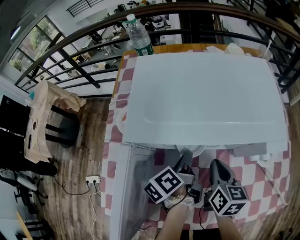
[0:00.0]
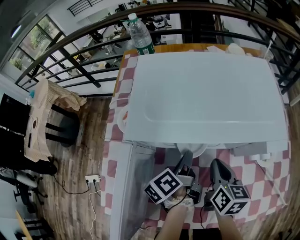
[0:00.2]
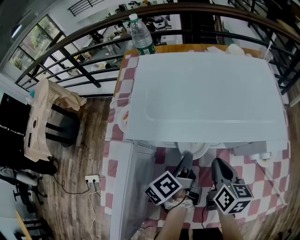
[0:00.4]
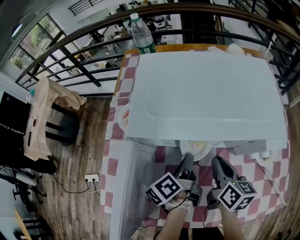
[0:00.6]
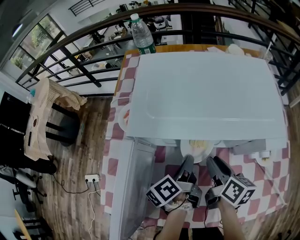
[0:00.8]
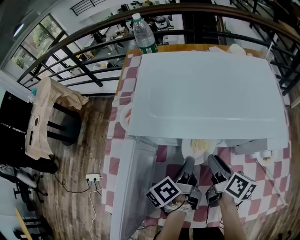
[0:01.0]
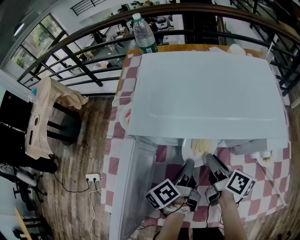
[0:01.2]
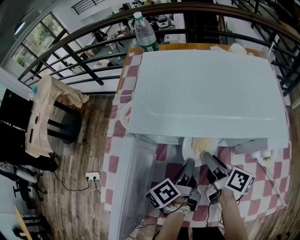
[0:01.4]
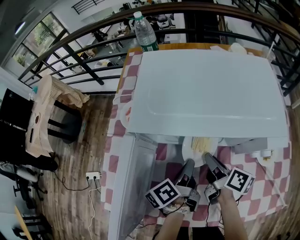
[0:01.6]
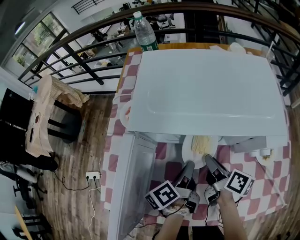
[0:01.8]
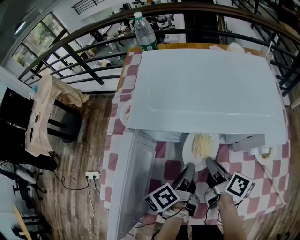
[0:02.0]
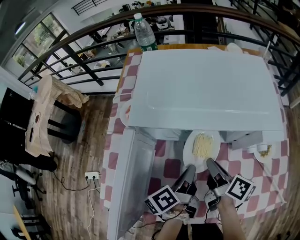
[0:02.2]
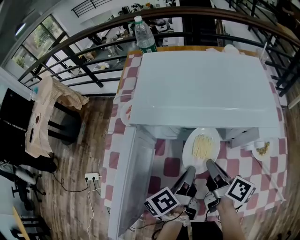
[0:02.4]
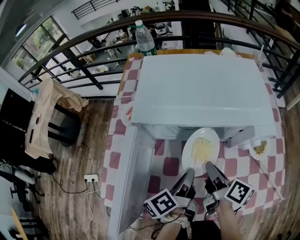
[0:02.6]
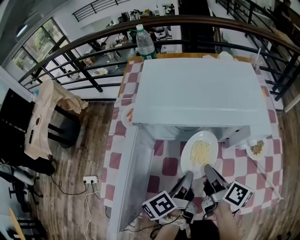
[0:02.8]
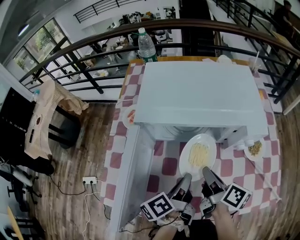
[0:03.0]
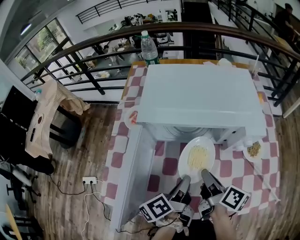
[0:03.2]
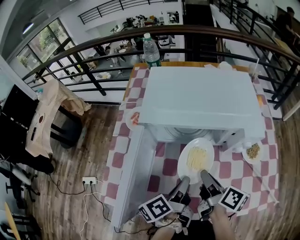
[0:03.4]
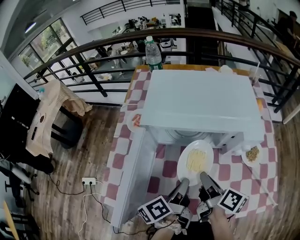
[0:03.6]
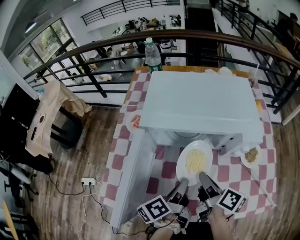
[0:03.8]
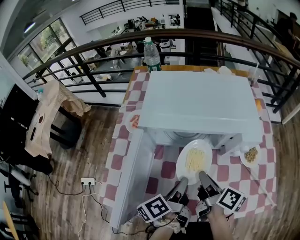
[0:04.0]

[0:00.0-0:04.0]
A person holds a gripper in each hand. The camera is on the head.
0.0 to 1.4 s: The right gripper rotates roughly 40 degrees, and opens its fingers.
1.4 to 2.6 s: Both grippers move backward, about 5 cm.
2.6 to 4.0 s: The grippers stay close to where they were, moving slightly.

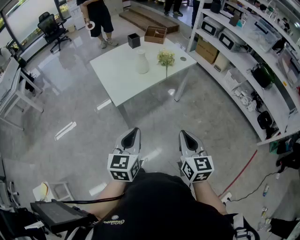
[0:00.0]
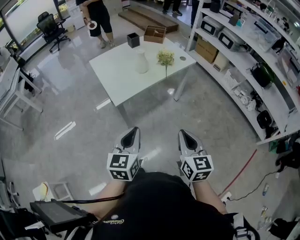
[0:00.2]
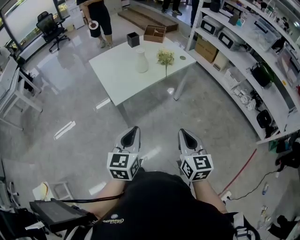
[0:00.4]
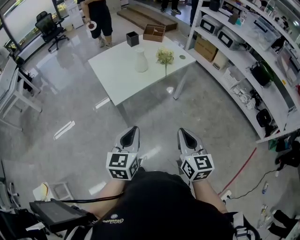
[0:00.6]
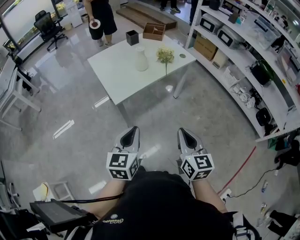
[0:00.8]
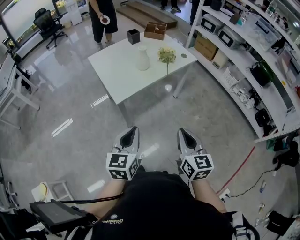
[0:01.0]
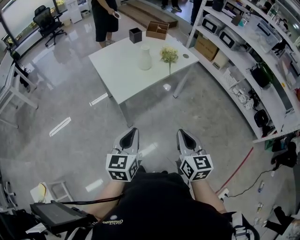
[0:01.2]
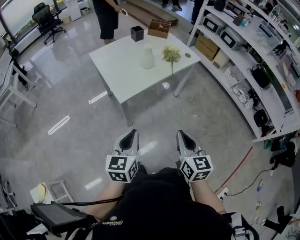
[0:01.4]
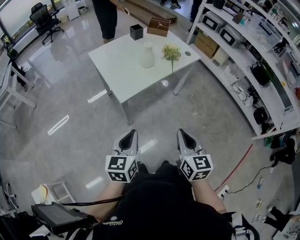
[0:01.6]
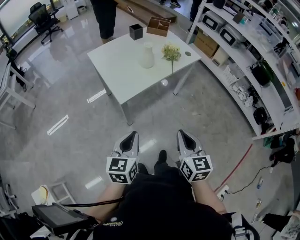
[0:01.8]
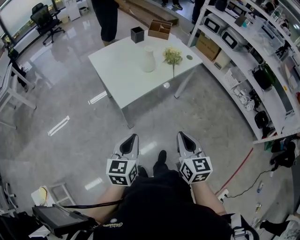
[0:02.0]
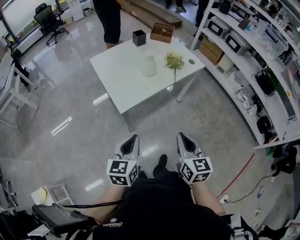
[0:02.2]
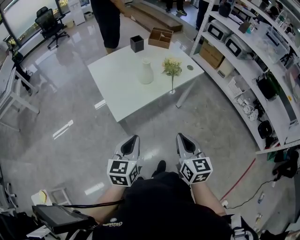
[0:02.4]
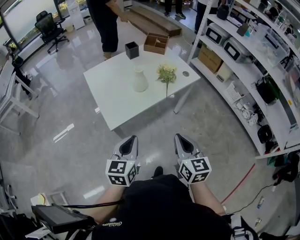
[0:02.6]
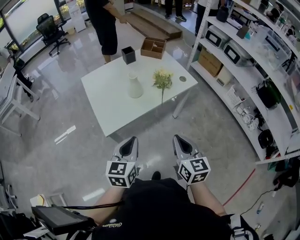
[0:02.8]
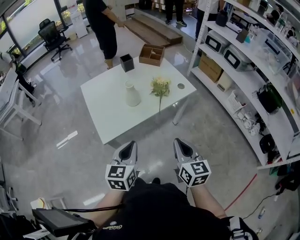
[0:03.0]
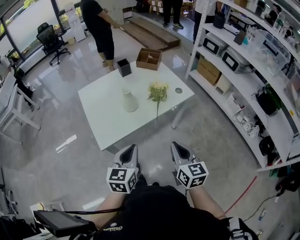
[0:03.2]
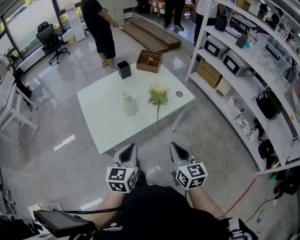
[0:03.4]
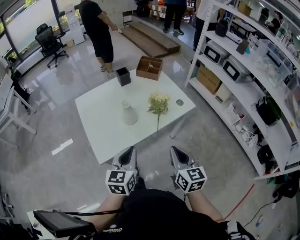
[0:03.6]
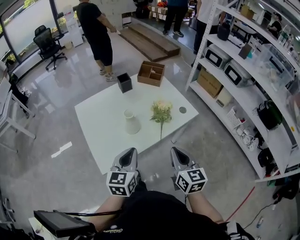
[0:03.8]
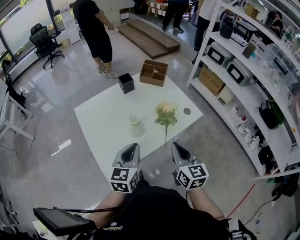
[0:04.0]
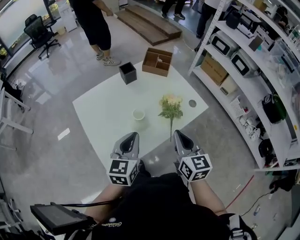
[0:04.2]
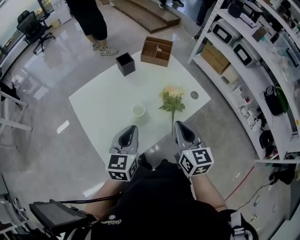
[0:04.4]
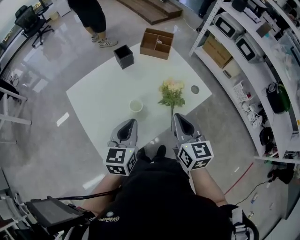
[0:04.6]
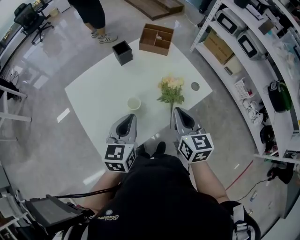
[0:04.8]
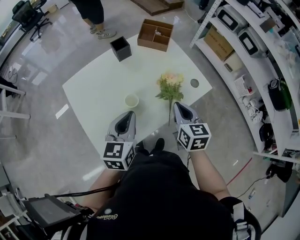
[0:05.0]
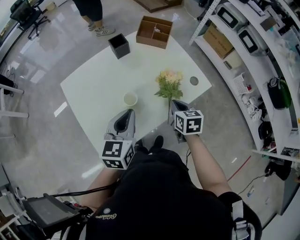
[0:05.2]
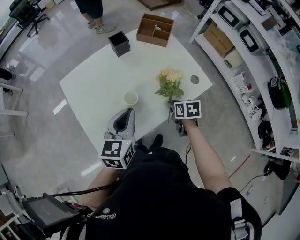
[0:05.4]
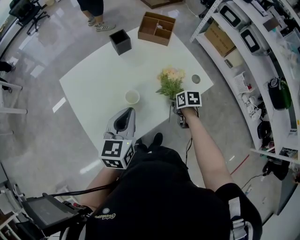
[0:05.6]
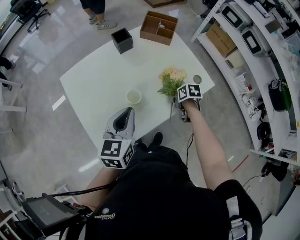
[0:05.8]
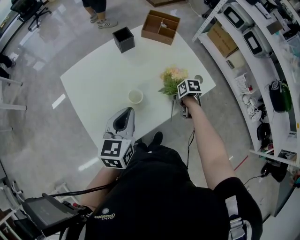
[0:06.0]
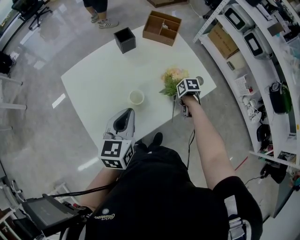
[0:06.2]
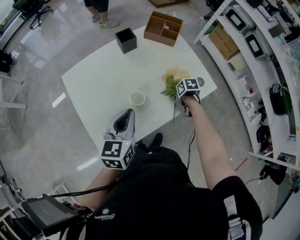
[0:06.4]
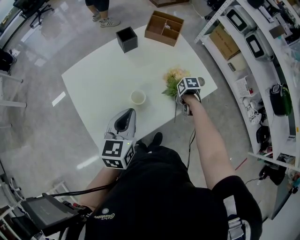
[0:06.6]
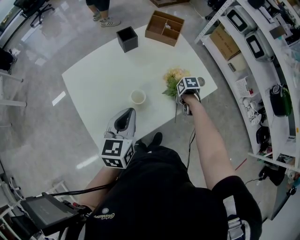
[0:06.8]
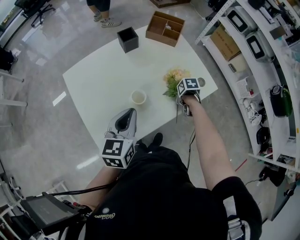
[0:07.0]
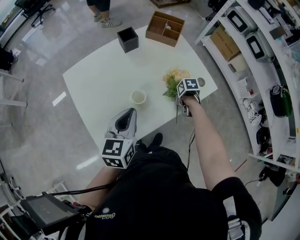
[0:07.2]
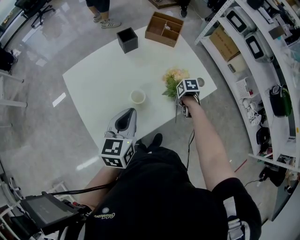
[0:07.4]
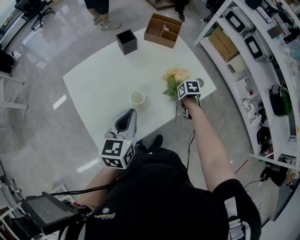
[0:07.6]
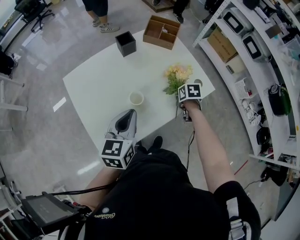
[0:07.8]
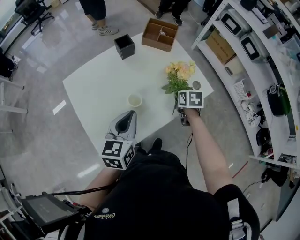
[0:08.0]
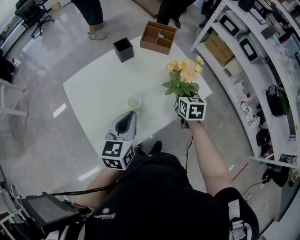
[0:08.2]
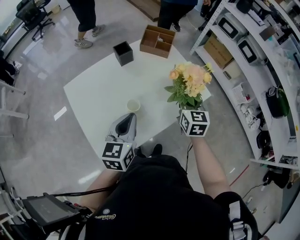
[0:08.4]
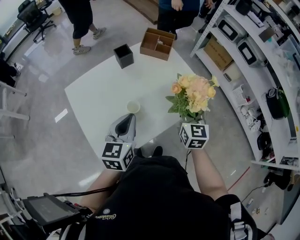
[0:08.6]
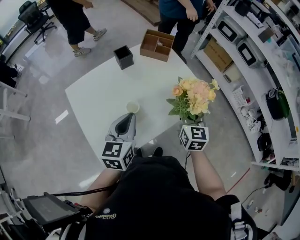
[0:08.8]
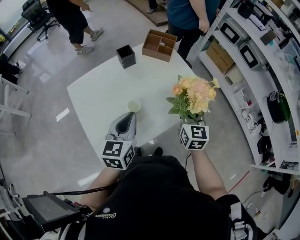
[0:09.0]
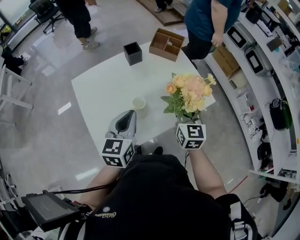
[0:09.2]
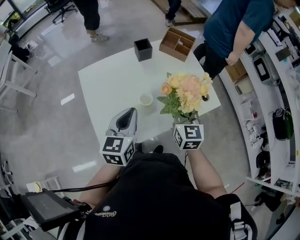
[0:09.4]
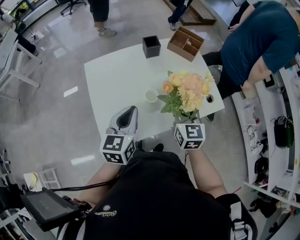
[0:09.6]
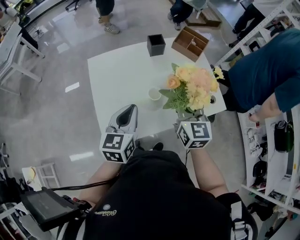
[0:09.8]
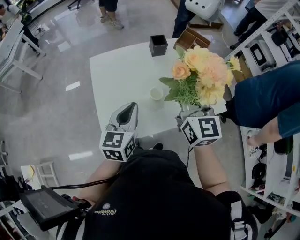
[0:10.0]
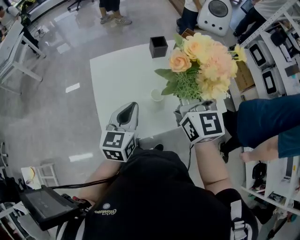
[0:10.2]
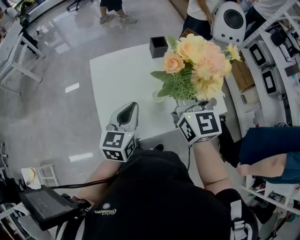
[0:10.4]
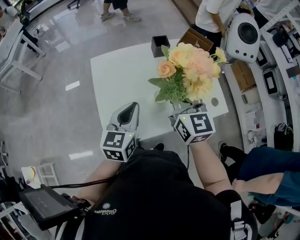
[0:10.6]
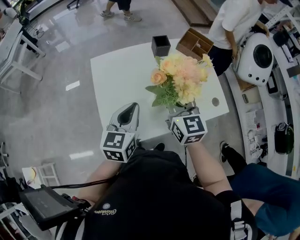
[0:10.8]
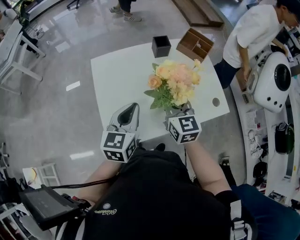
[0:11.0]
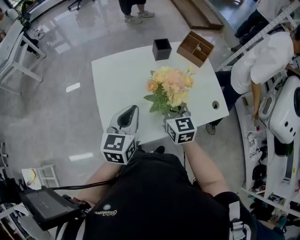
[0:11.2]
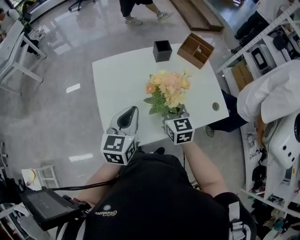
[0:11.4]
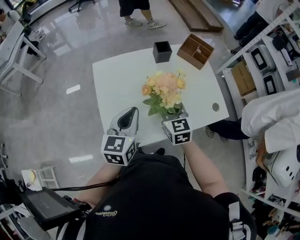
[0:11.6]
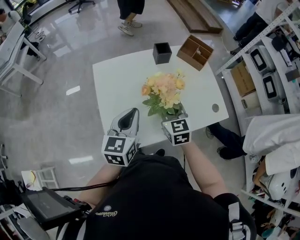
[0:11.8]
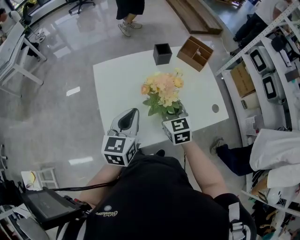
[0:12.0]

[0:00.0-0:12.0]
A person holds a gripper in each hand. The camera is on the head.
0.0 to 1.6 s: The grippers both shift to the left by approximately 10 cm.
1.6 to 3.0 s: The grippers both shift forward and to the right by roughly 25 cm.
3.0 to 4.4 s: The two grippers go some 30 cm forward.
4.4 to 6.0 s: The right gripper moves downward, approximately 30 cm, tilts its fingers about 50 degrees downward, and opens up.
6.0 to 7.6 s: The grippers make only small movements.
7.6 to 9.0 s: The right gripper heads upward, covering some 25 cm, and points its fingers approximately 60 degrees further upward.
9.0 to 10.4 s: The left gripper moves to the left, approximately 5 cm; the right gripper shifts approximately 25 cm to the left and upward, and turns by roughly 30 degrees.
10.4 to 12.0 s: The right gripper is displaced downward by some 20 cm, and changes its angle by roughly 30 degrees.

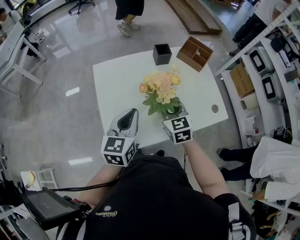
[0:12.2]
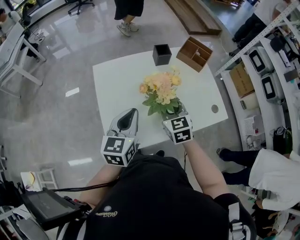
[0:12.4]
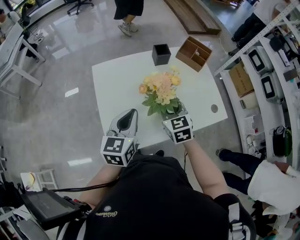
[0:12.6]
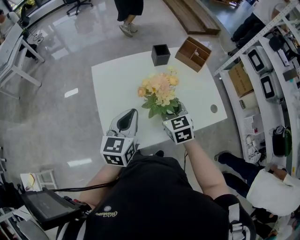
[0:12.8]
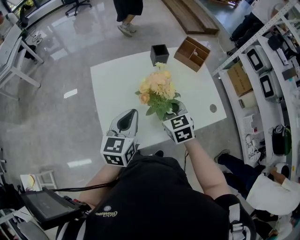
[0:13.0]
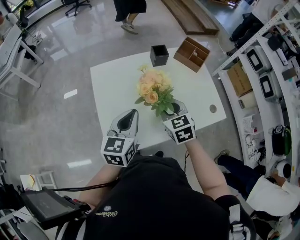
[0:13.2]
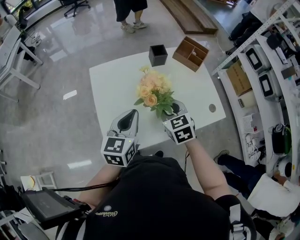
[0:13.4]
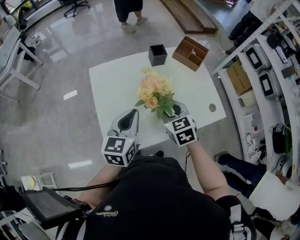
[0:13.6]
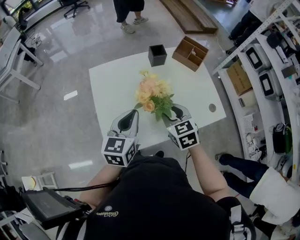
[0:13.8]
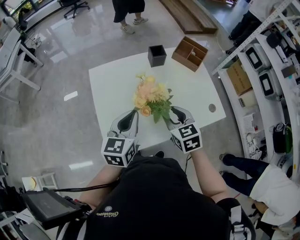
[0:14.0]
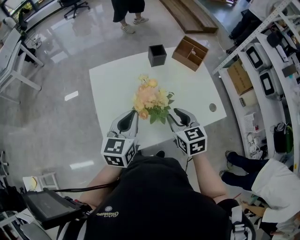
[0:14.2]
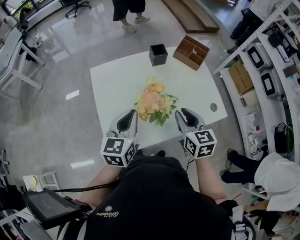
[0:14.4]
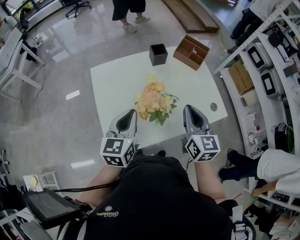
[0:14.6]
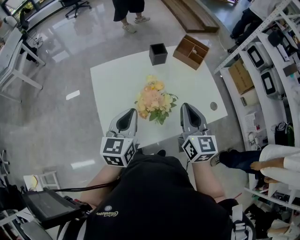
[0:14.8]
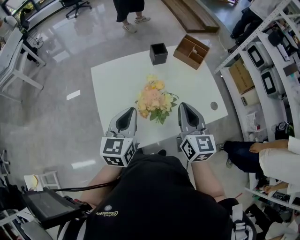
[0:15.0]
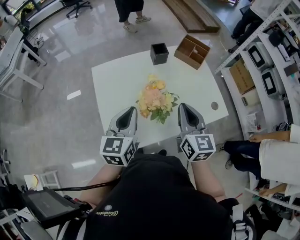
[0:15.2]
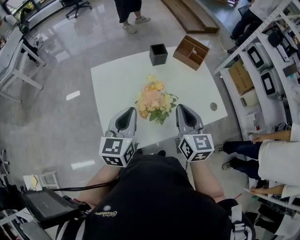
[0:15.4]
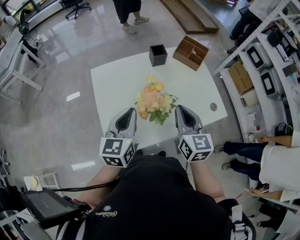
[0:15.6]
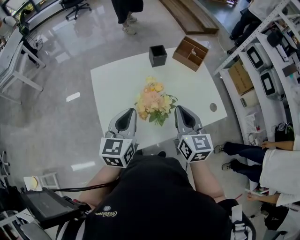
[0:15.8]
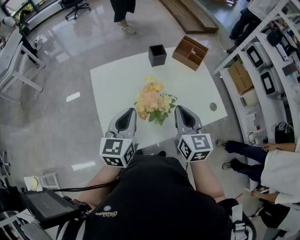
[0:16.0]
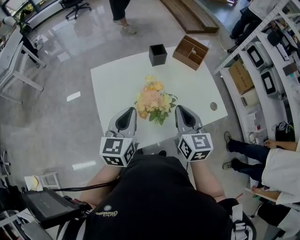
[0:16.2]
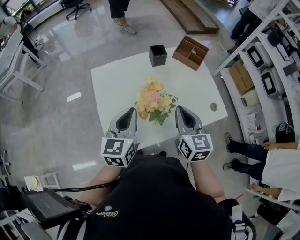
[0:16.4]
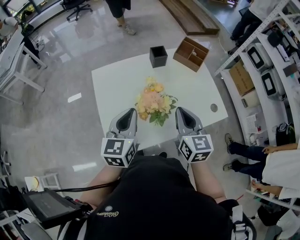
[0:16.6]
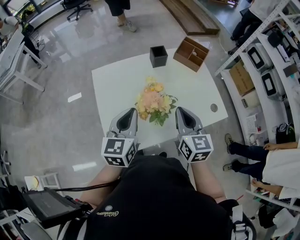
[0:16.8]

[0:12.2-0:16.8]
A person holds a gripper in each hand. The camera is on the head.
12.2 to 13.8 s: The grippers make only small movements.
13.8 to 15.2 s: The right gripper goes about 10 cm upward, changes its angle by roughly 30 degrees, and closes up.
15.2 to 16.8 s: The grippers make only small movements.

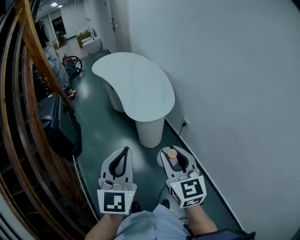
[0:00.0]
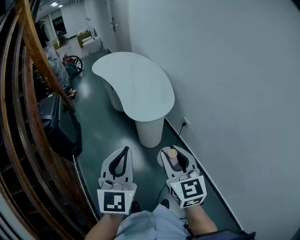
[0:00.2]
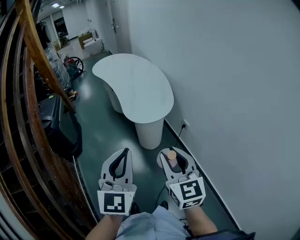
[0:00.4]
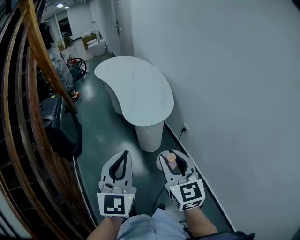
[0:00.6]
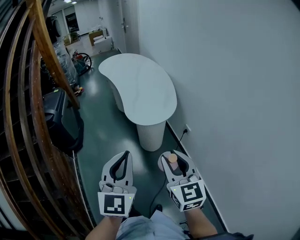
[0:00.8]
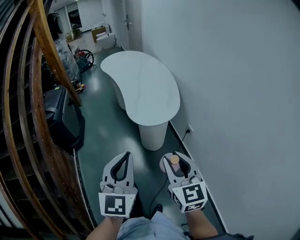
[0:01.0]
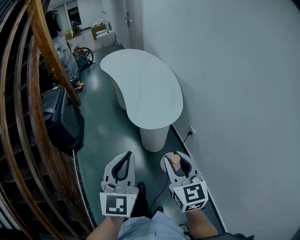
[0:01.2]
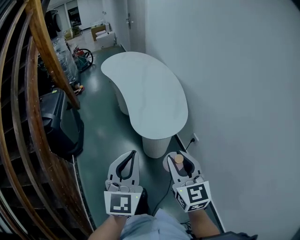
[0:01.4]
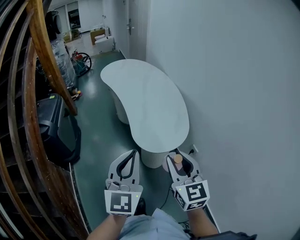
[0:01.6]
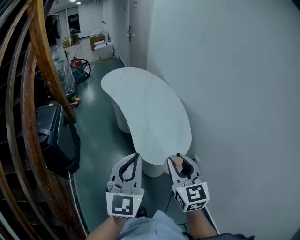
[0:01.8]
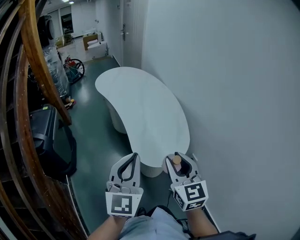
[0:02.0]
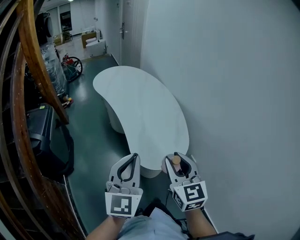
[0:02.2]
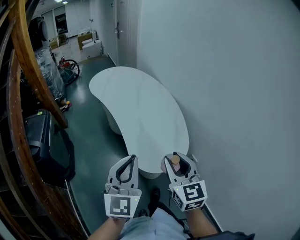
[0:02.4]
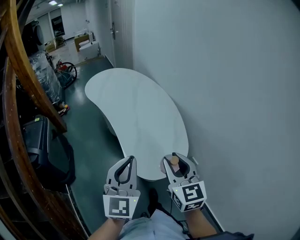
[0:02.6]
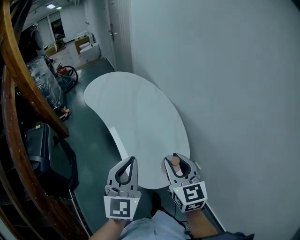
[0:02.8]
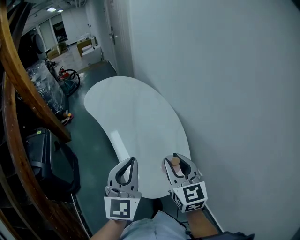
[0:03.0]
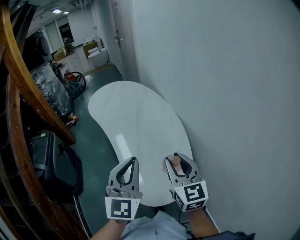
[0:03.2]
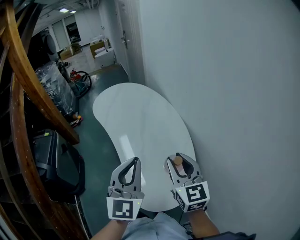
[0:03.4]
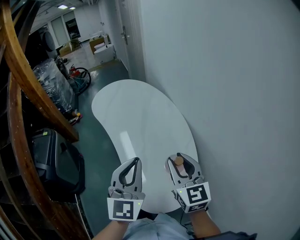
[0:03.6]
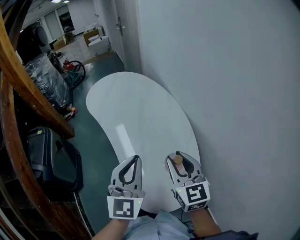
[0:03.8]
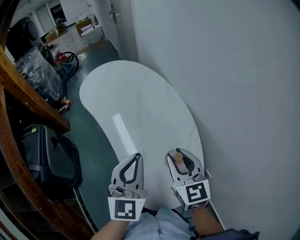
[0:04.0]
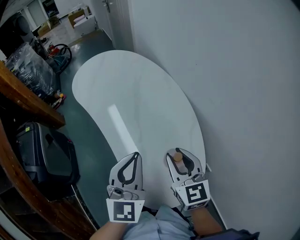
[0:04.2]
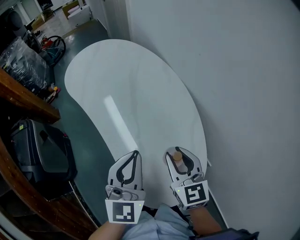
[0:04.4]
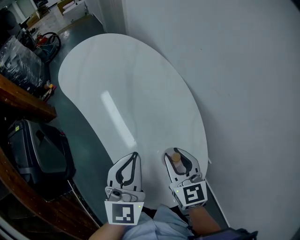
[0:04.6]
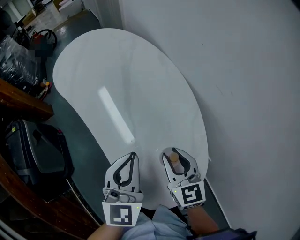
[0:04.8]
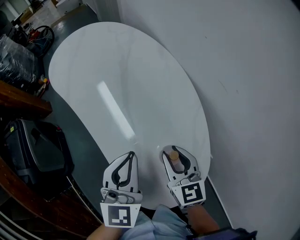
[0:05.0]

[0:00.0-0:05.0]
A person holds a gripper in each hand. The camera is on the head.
0.0 to 1.6 s: Both grippers move forward, some 15 cm.
1.6 to 3.4 s: The grippers both shift forward by approximately 25 cm.
3.4 to 5.0 s: The right gripper heads downward, covering roughly 15 cm. Meanwhile the left gripper moves downward and forward, about 15 cm, and turns by roughly 30 degrees.
